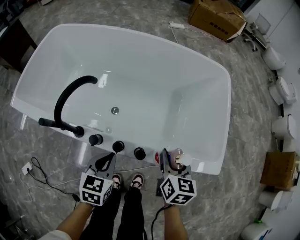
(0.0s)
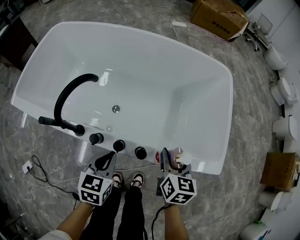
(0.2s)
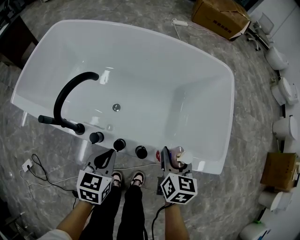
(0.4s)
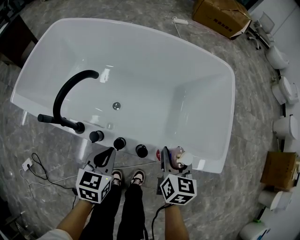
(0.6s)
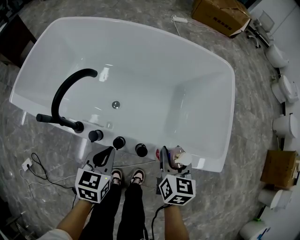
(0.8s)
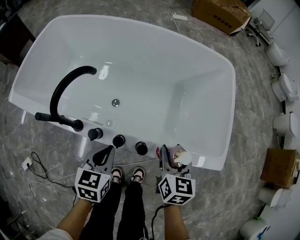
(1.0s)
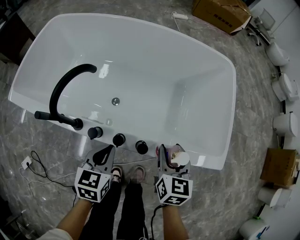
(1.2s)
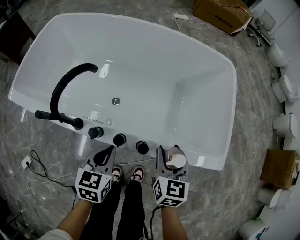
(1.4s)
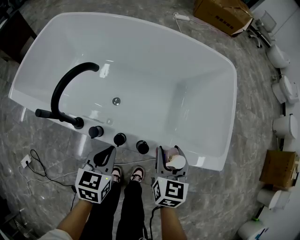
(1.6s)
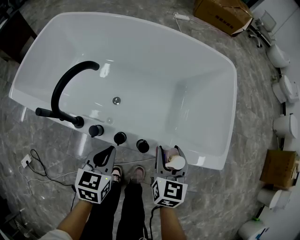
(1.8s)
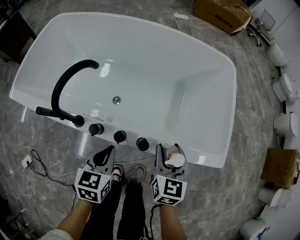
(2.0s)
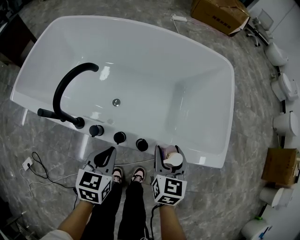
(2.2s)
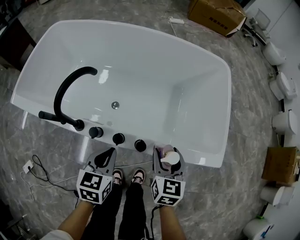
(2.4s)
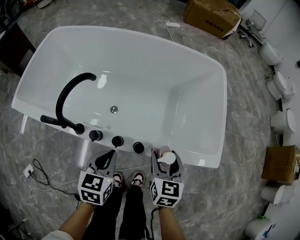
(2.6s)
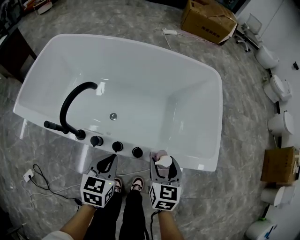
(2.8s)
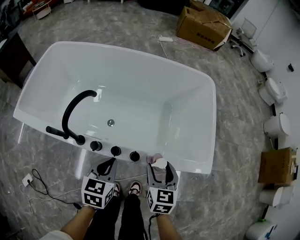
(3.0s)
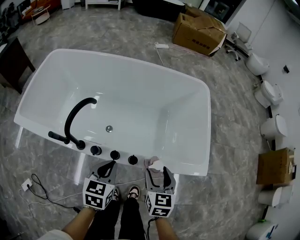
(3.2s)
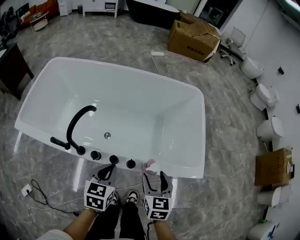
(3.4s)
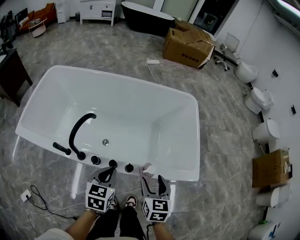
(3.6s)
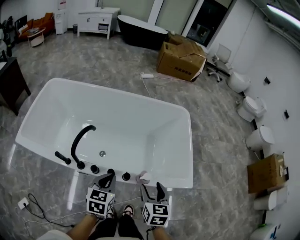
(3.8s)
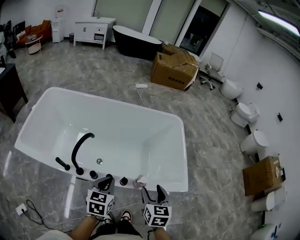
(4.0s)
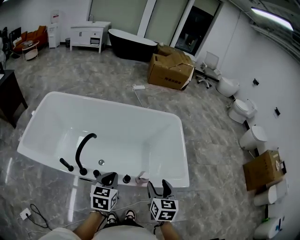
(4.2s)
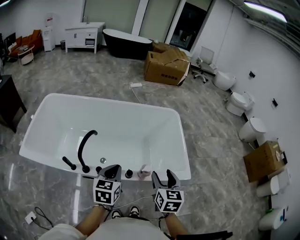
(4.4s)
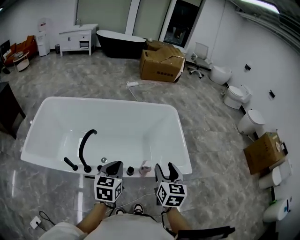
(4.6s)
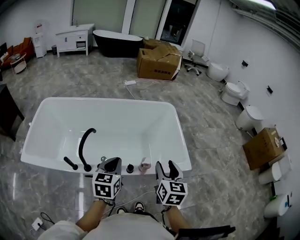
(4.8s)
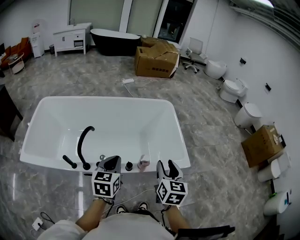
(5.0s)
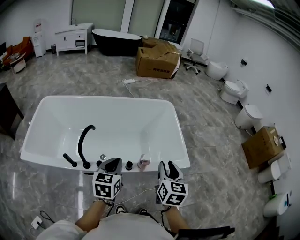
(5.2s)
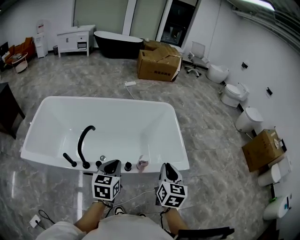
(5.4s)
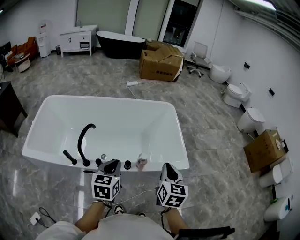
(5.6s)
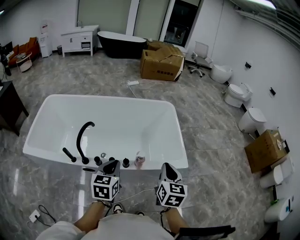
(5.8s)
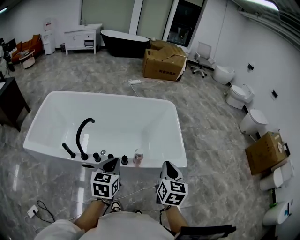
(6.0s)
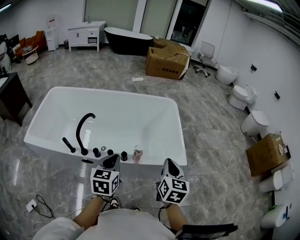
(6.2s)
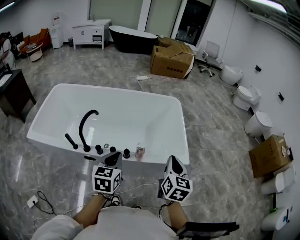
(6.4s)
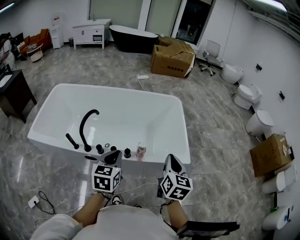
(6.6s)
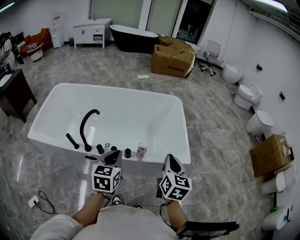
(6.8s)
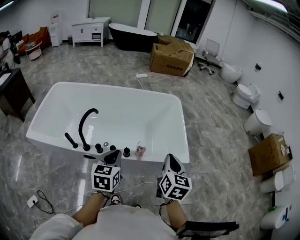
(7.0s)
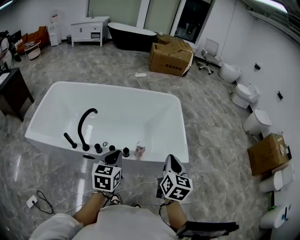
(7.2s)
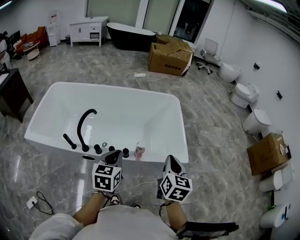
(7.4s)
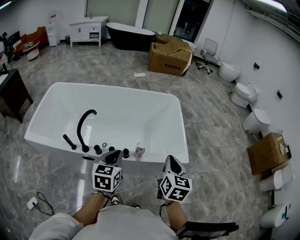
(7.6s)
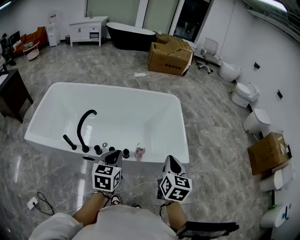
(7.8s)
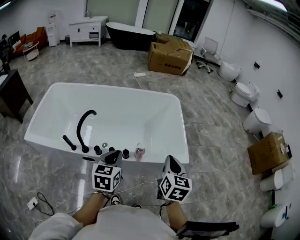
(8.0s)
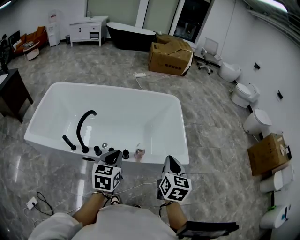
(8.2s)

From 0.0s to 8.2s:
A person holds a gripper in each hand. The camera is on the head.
From 0.0s to 1.6s: There are only small adjustments of the grippers.
From 1.6s to 3.2s: The right gripper ends up roughly 5 cm from where it was, while the left gripper heads upward, covering about 5 cm.
From 3.2s to 5.0s: The grippers both shift upward by roughly 15 cm. The right gripper rotates some 20 degrees.
From 5.0s to 6.6s: The left gripper is displaced backward by some 5 cm; the right gripper heads to the right, covering about 5 cm, and closes.
From 6.6s to 8.2s: The grippers stay close to where they were, moving slightly.

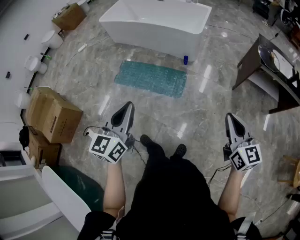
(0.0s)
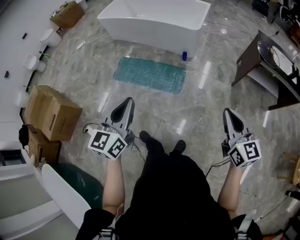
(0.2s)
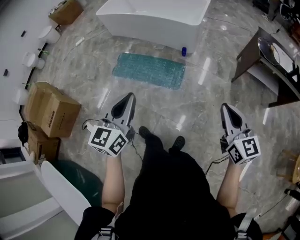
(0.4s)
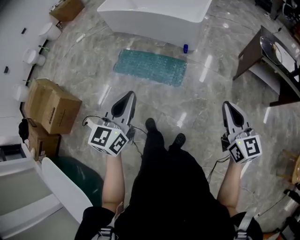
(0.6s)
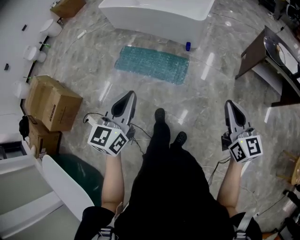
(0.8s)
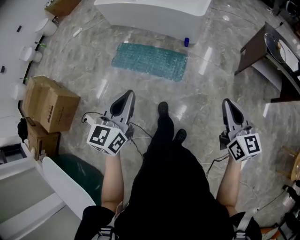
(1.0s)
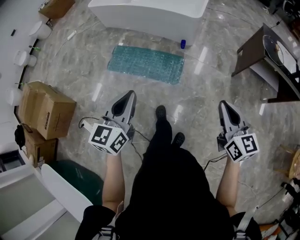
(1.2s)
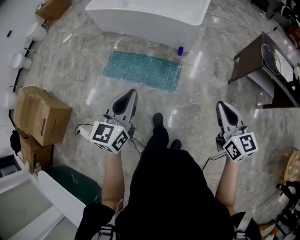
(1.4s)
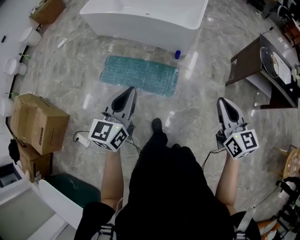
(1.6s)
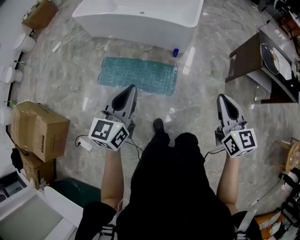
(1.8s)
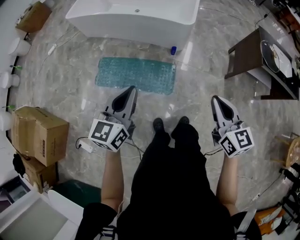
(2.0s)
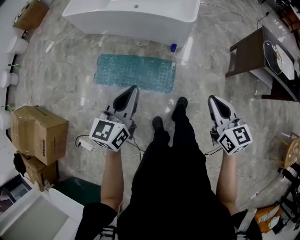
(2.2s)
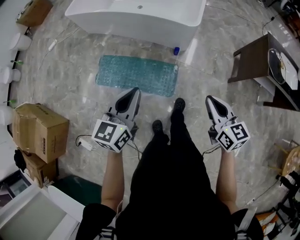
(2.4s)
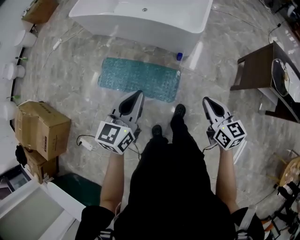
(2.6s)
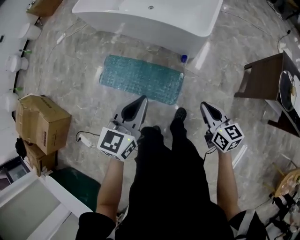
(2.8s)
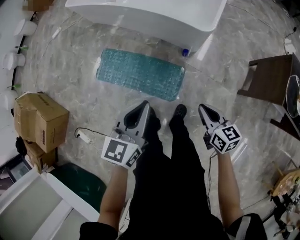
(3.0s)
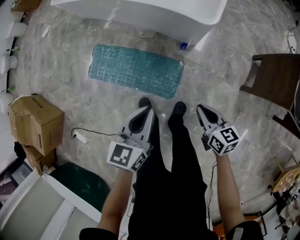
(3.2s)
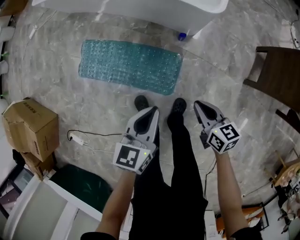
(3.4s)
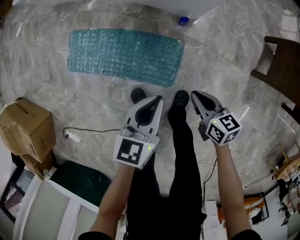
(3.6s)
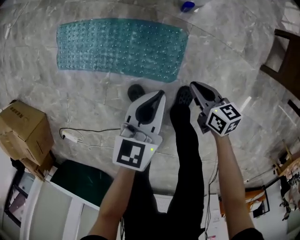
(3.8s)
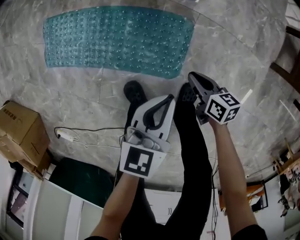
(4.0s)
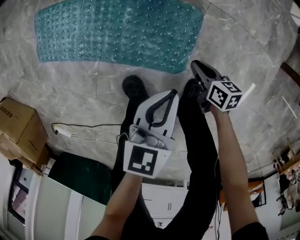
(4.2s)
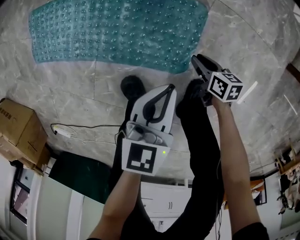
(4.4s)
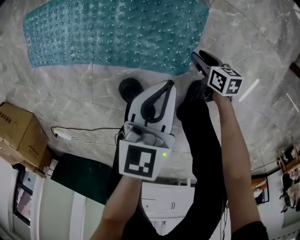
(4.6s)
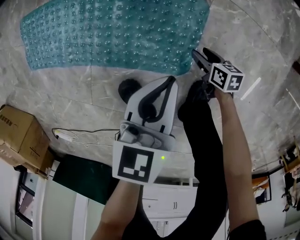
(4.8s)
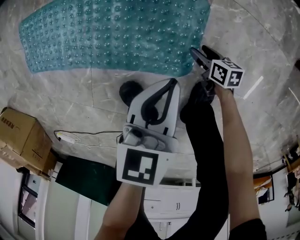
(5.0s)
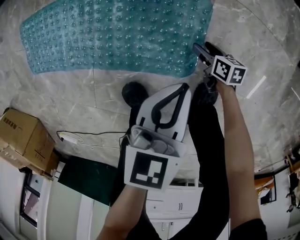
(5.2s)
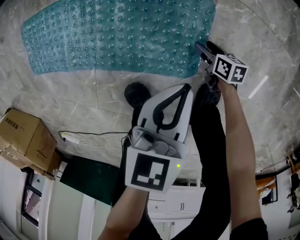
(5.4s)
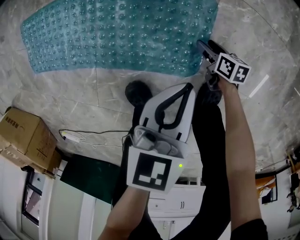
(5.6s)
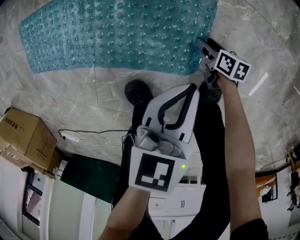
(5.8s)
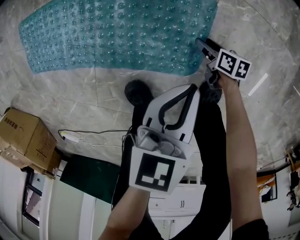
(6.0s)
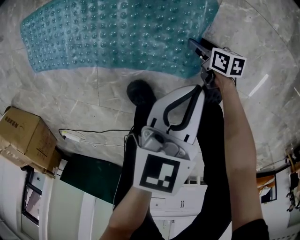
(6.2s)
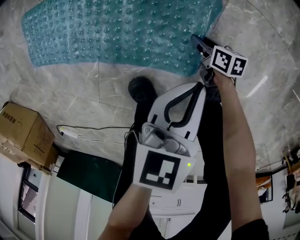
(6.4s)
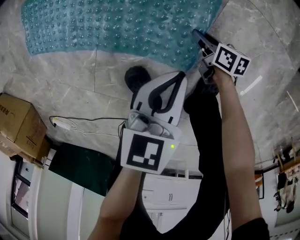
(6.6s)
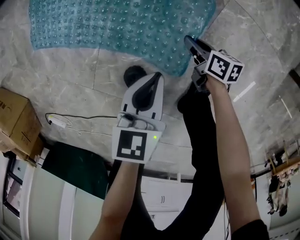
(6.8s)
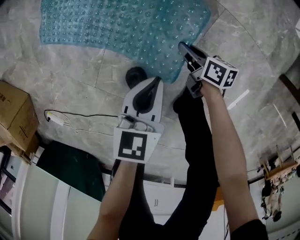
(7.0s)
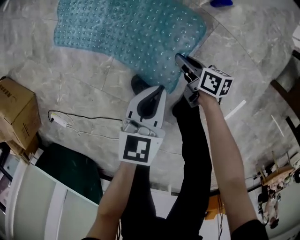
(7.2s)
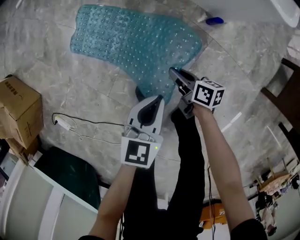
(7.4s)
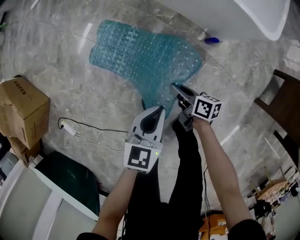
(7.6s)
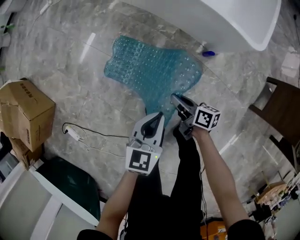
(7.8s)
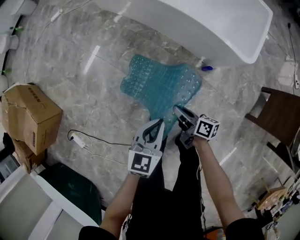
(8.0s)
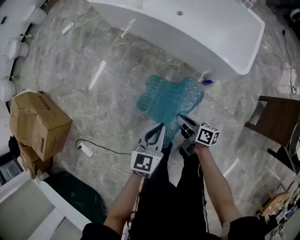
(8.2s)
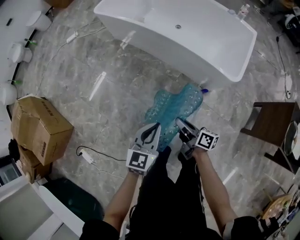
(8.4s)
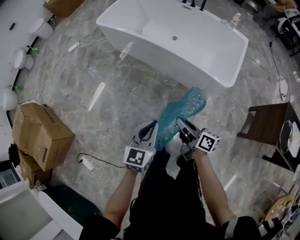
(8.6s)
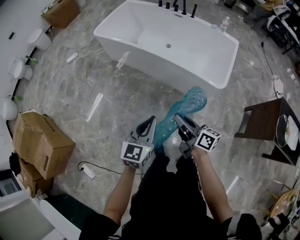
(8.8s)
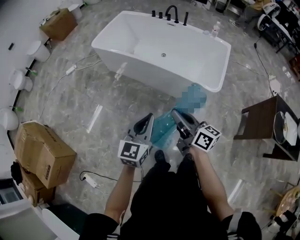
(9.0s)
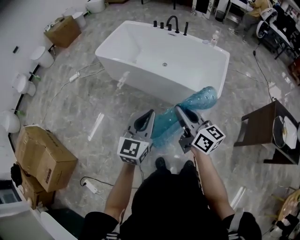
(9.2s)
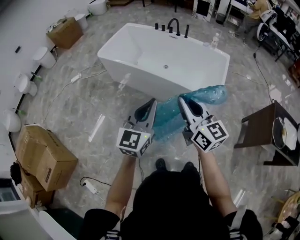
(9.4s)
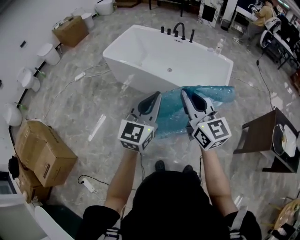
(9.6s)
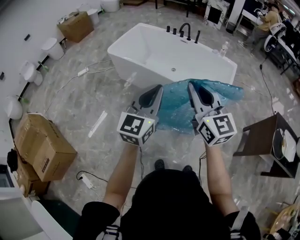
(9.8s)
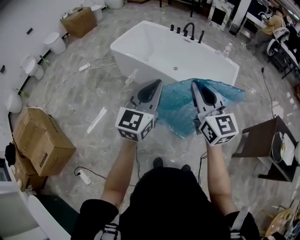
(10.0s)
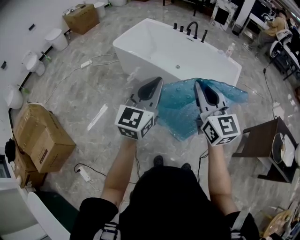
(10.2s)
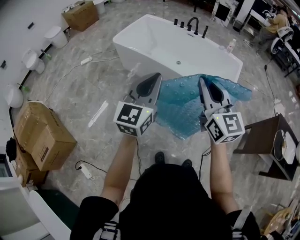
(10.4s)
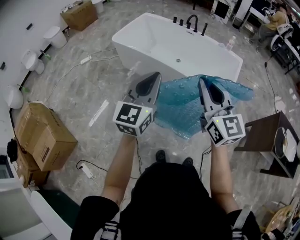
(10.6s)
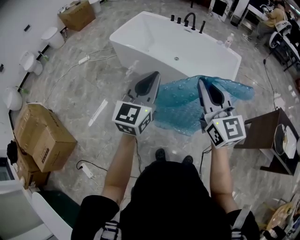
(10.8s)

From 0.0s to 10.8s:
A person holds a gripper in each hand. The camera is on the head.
From 0.0s to 1.6s: The right gripper goes some 25 cm forward and to the left; the left gripper travels forward by about 20 cm.
From 1.6s to 3.0s: The left gripper moves forward, downward and to the right, some 35 cm, while the right gripper shifts some 40 cm forward and downward, and rotates approximately 30 degrees.
From 3.0s to 4.6s: Both grippers move downward, roughly 70 cm. The left gripper changes its angle by approximately 20 degrees. The right gripper rotates about 30 degrees, and opens its fingers.
From 4.6s to 6.2s: The right gripper shifts about 5 cm downward.
From 6.2s to 7.8s: The right gripper heads upward, covering approximately 60 cm, turns by roughly 30 degrees, and closes. The left gripper goes approximately 50 cm upward and to the left, and swivels some 30 degrees.
From 7.8s to 9.2s: The grippers both shift upward by approximately 50 cm. The left gripper turns by some 30 degrees; the right gripper turns by about 50 degrees.
From 9.2s to 10.8s: The left gripper moves upward and to the left, roughly 10 cm. The right gripper is displaced upward by approximately 10 cm, and swivels about 30 degrees.

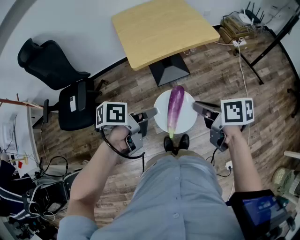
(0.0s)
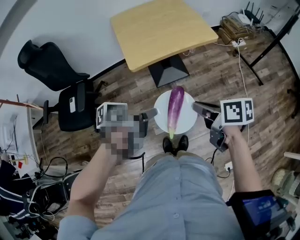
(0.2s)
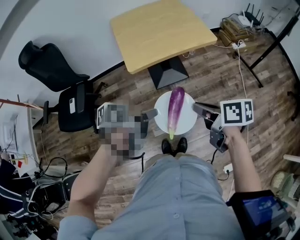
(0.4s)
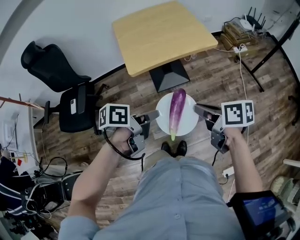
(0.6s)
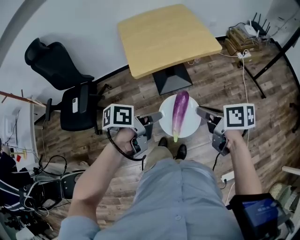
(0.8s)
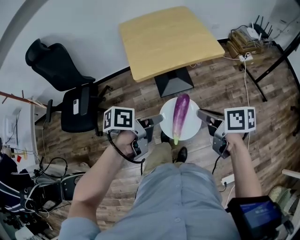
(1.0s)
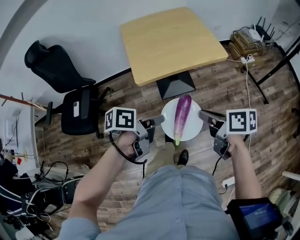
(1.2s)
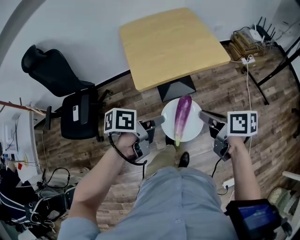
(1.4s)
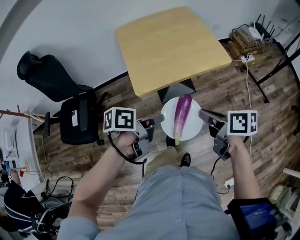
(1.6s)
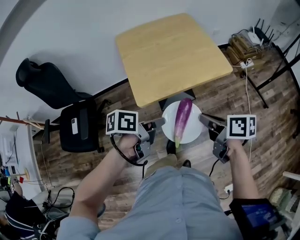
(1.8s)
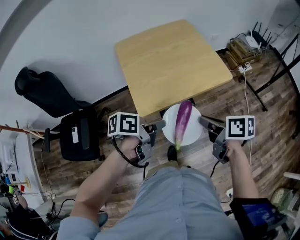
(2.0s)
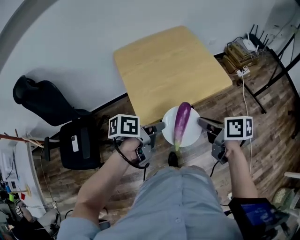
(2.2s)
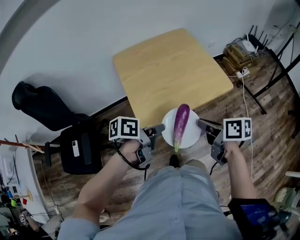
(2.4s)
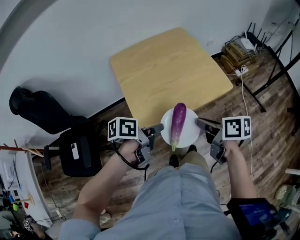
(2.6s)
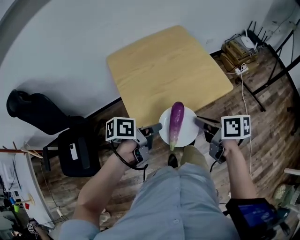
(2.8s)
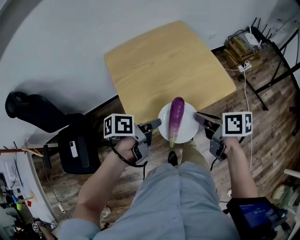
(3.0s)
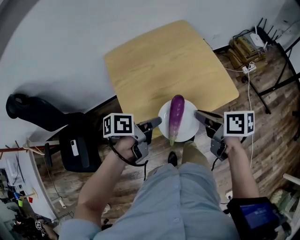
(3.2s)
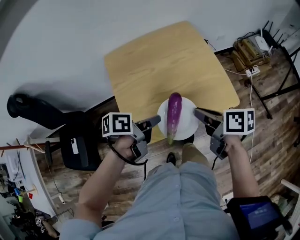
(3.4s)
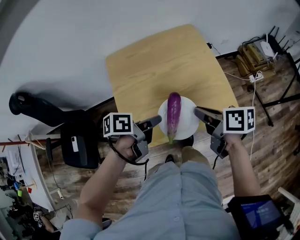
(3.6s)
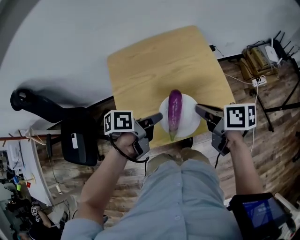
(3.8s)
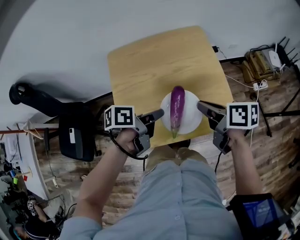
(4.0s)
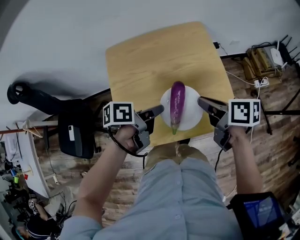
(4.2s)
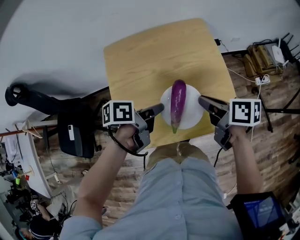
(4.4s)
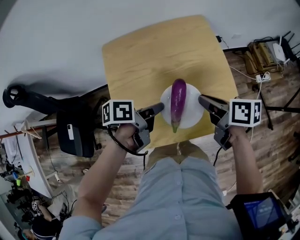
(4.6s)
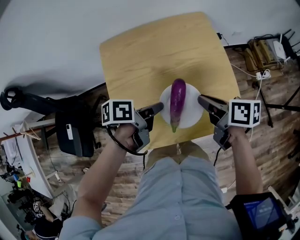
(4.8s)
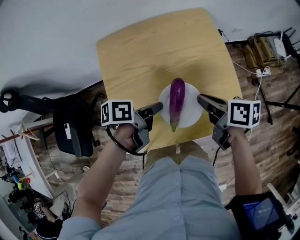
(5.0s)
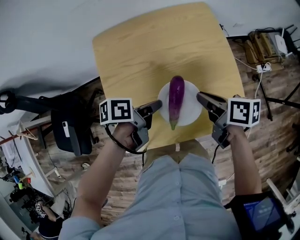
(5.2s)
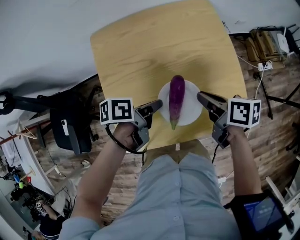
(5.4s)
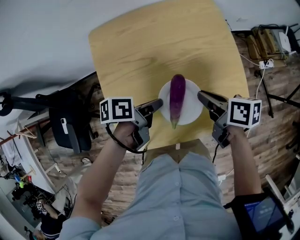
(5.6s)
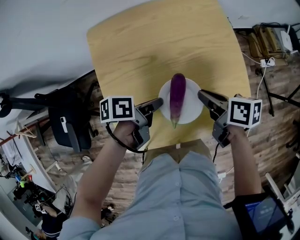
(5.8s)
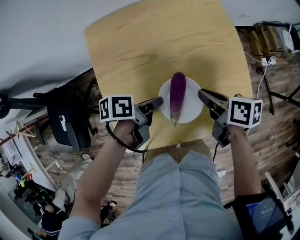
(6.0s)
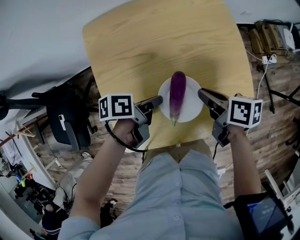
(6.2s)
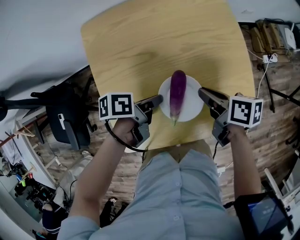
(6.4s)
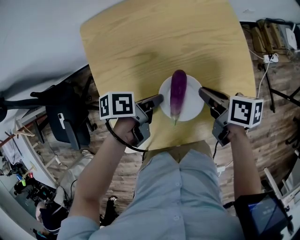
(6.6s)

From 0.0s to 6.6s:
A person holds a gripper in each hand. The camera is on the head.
From 0.0s to 1.6s: The right gripper moves some 15 cm.
From 1.6s to 3.2s: The right gripper moves about 25 cm.
From 3.2s to 5.0s: The right gripper moves approximately 20 cm.
From 5.0s to 6.6s: The right gripper moves downward, approximately 10 cm.
